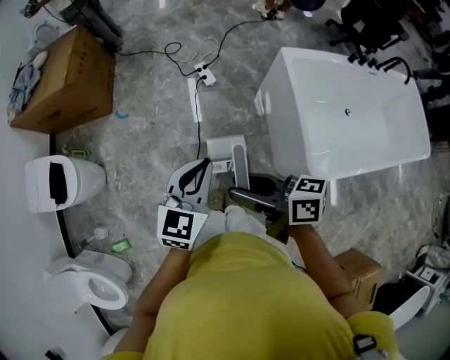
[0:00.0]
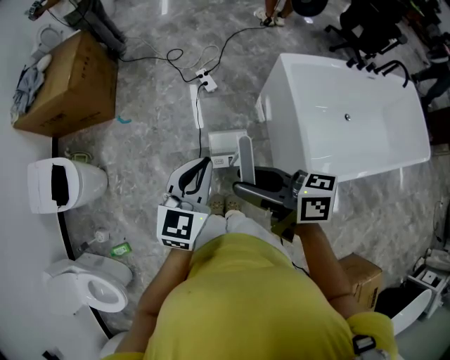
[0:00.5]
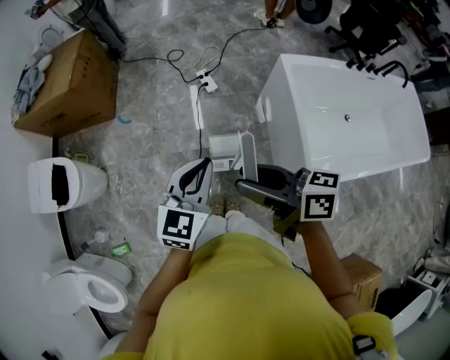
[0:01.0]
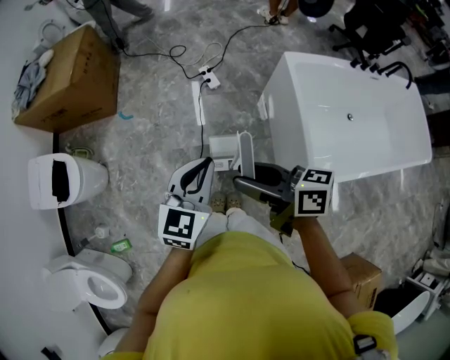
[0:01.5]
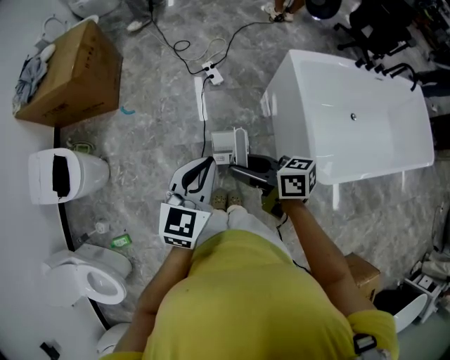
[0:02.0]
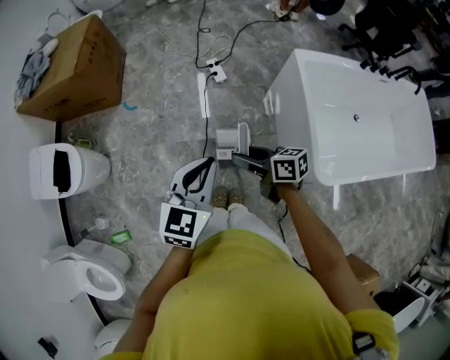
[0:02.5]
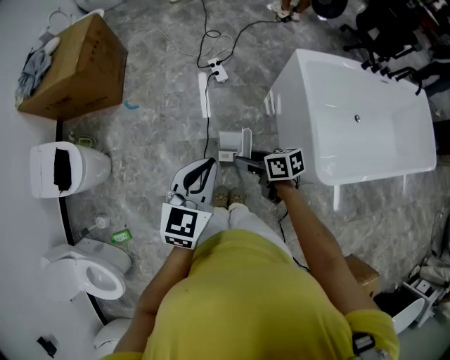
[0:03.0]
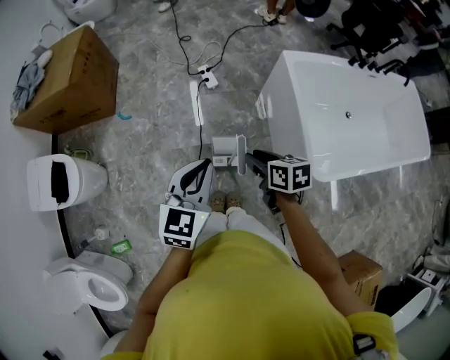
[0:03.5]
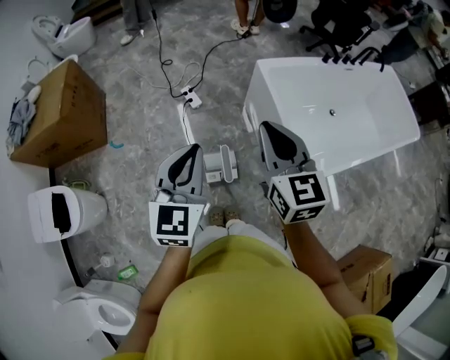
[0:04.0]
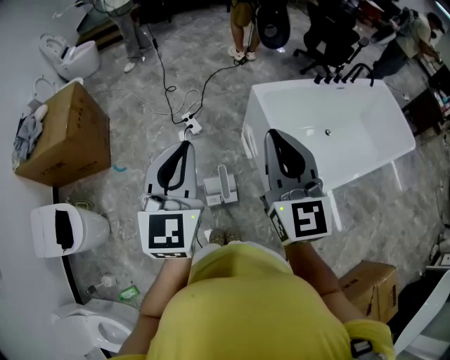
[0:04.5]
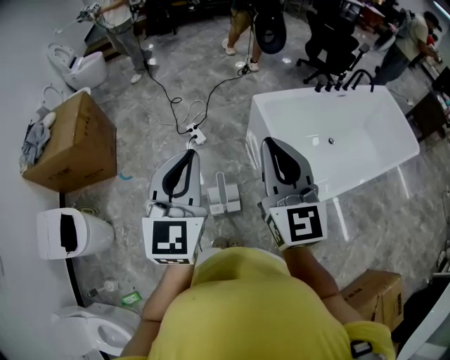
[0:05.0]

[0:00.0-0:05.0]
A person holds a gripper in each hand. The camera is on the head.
0.0 to 2.5 s: The right gripper goes roughly 15 cm downward and forward.
2.5 to 5.0 s: The left gripper heads upward, covering some 20 cm, and rotates about 20 degrees. Meanwhile the right gripper heads upward, covering roughly 35 cm, rotates about 80 degrees, and closes up.

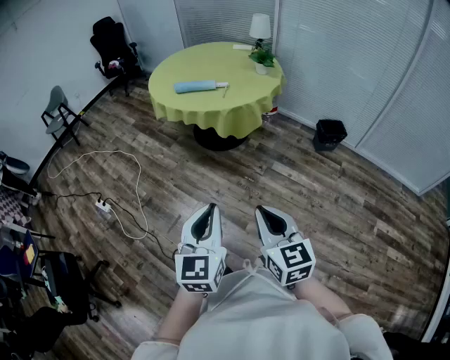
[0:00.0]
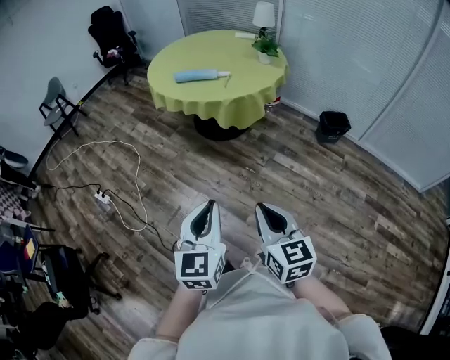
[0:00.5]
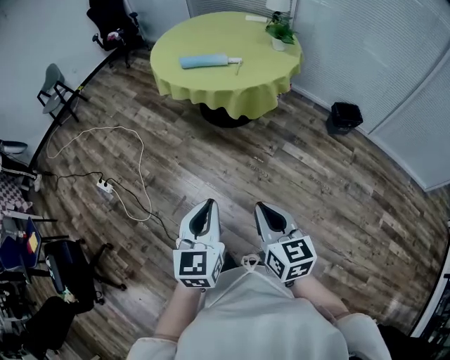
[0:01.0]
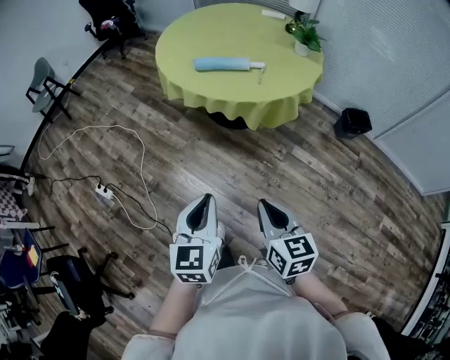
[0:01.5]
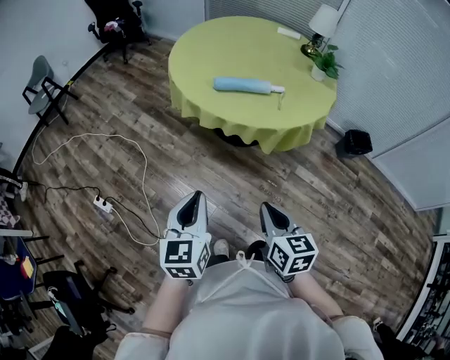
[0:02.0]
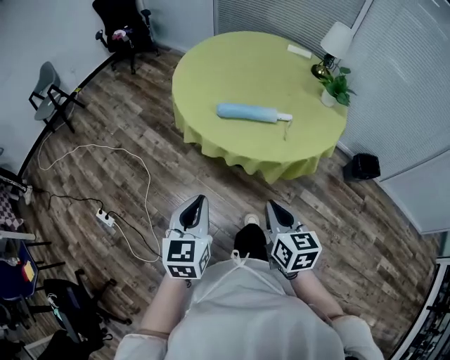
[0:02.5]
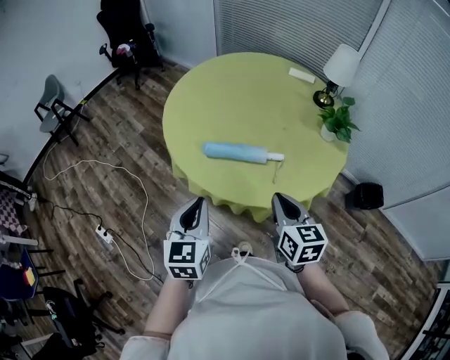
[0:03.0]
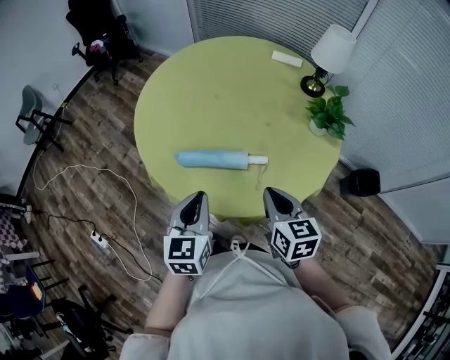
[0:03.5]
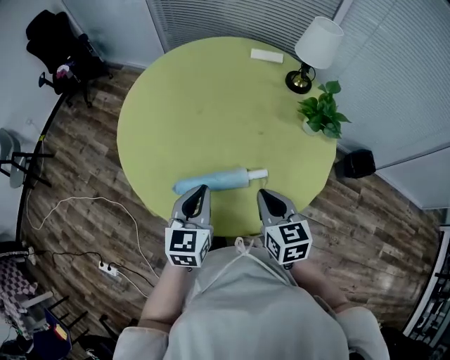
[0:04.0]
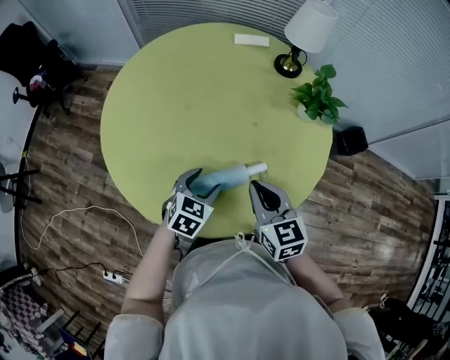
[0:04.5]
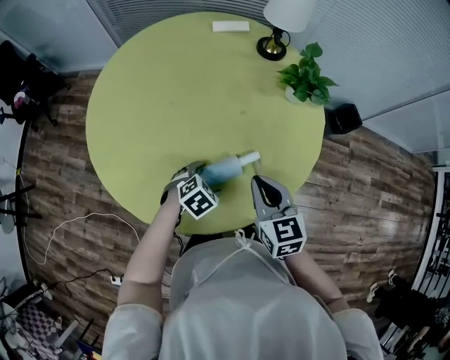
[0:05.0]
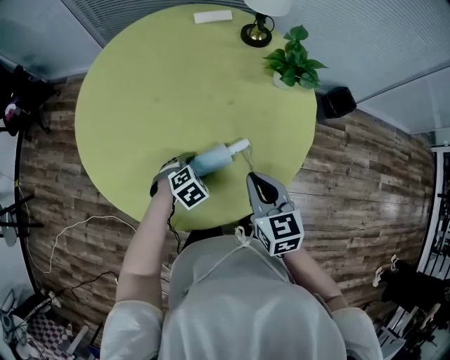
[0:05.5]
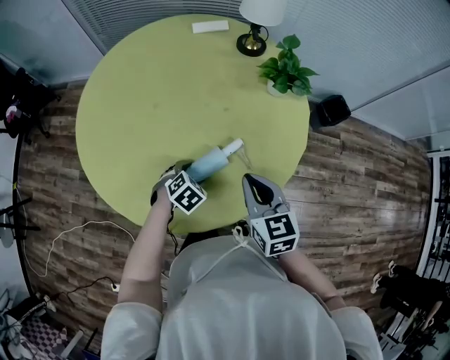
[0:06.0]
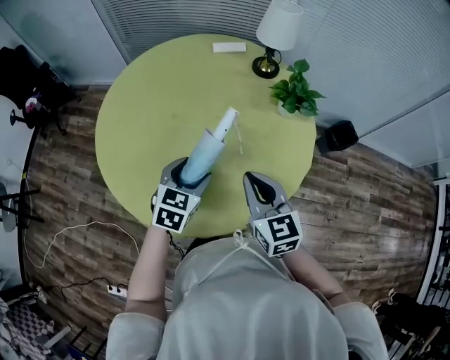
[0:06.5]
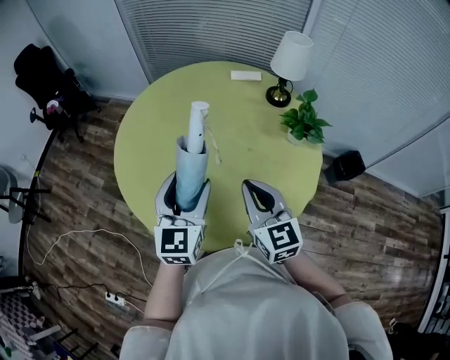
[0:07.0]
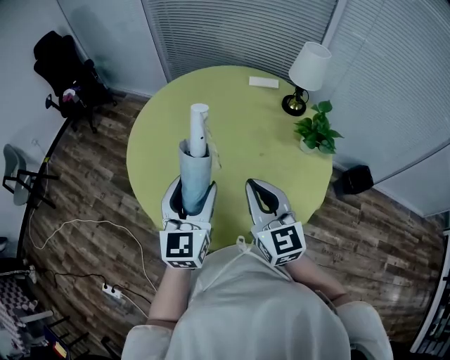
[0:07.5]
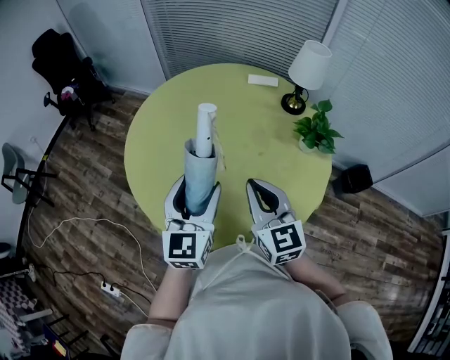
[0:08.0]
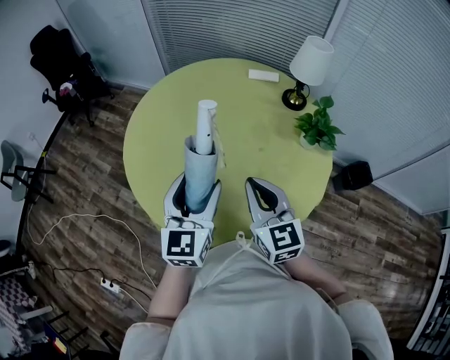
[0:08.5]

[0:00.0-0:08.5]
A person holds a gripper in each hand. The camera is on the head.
0.0 to 2.0 s: The two grippers travel together, forward and to the left, some 50 cm.
2.0 to 4.0 s: The two grippers travel together, forward, some 60 cm.
4.0 to 6.5 s: The left gripper reaches approximately 25 cm downward, then returns, swivels approximately 30 degrees, and opens its fingers.
6.5 to 8.5 s: The left gripper travels upward by roughly 15 cm, and points its fingers about 30 degrees further upward. The right gripper heads upward, covering approximately 5 cm.

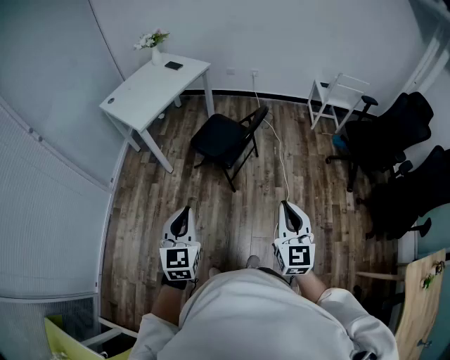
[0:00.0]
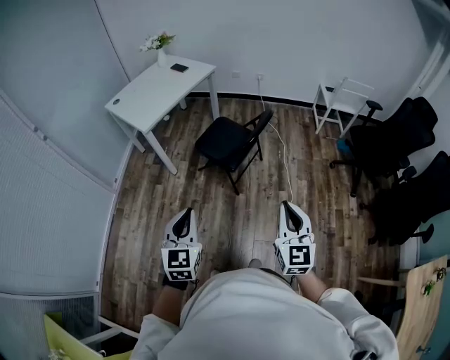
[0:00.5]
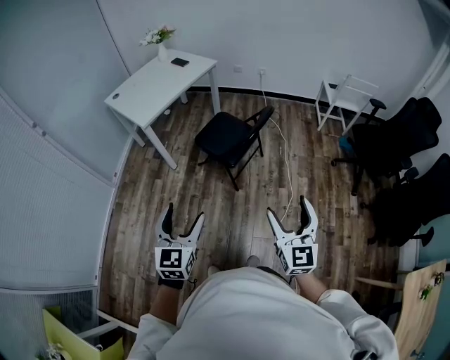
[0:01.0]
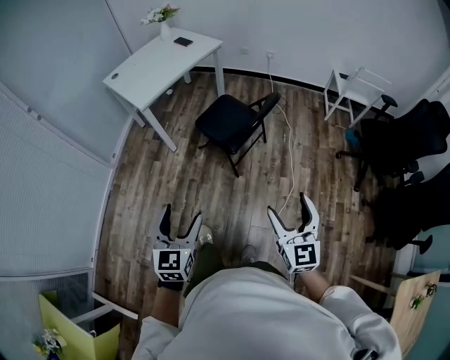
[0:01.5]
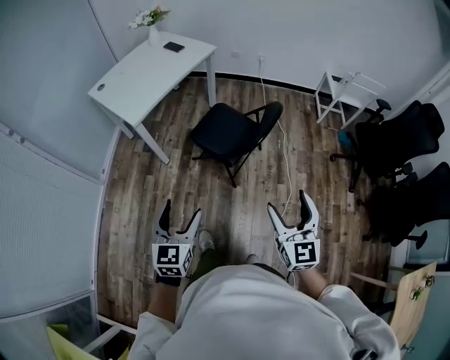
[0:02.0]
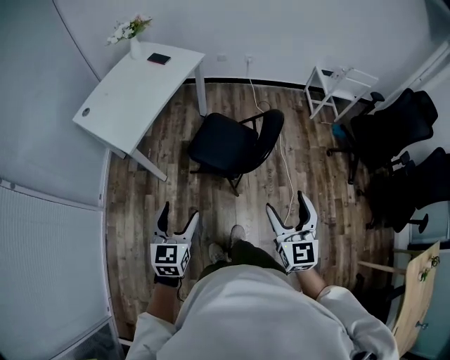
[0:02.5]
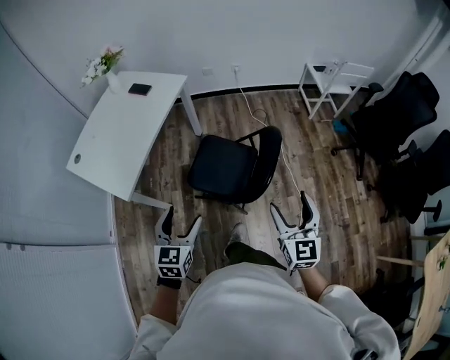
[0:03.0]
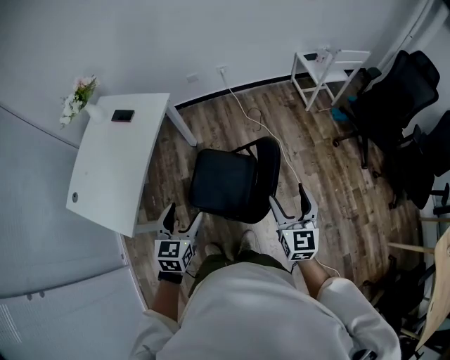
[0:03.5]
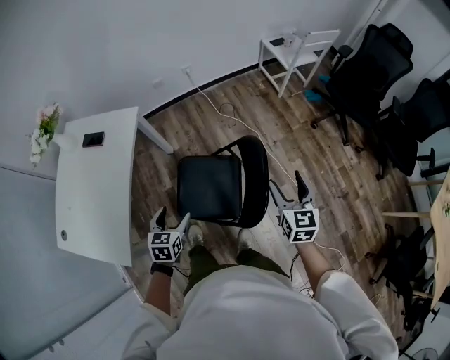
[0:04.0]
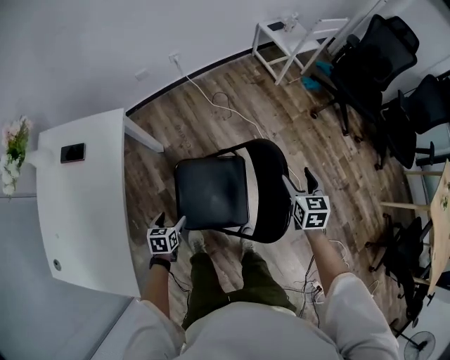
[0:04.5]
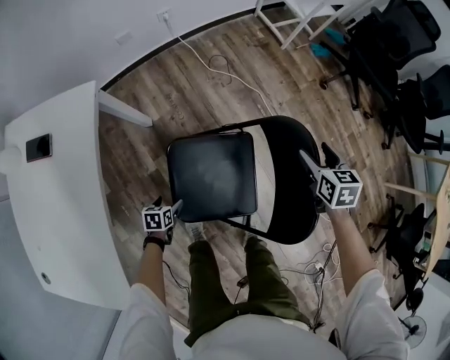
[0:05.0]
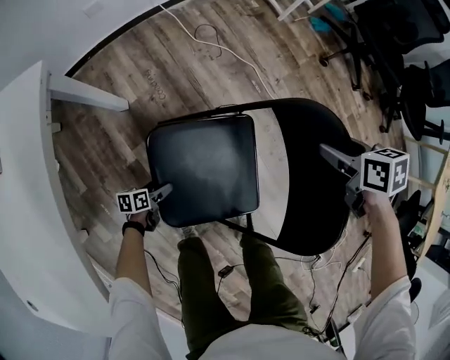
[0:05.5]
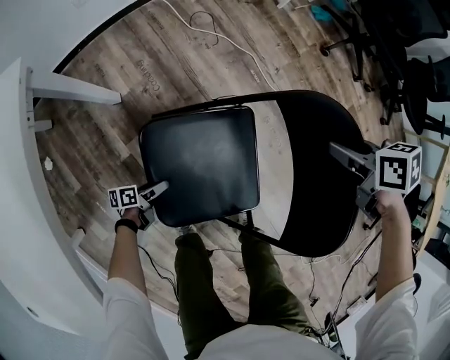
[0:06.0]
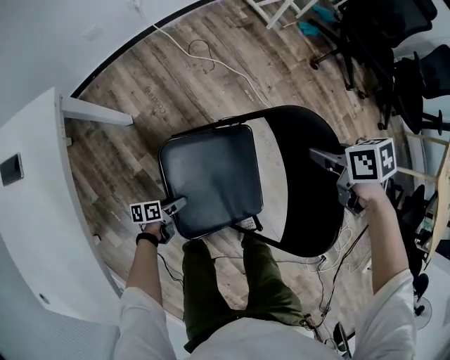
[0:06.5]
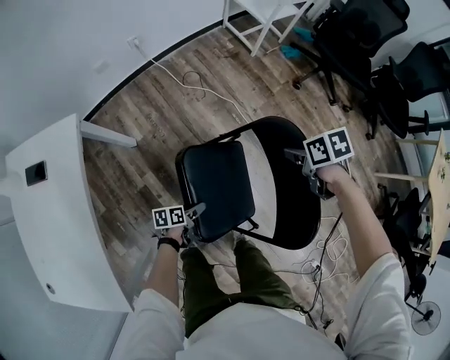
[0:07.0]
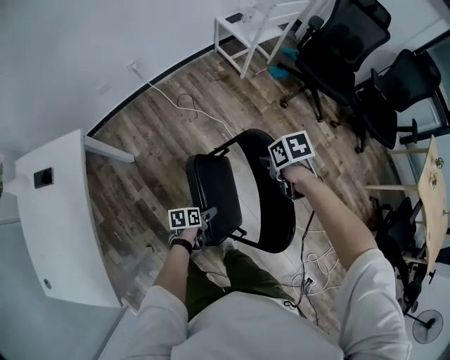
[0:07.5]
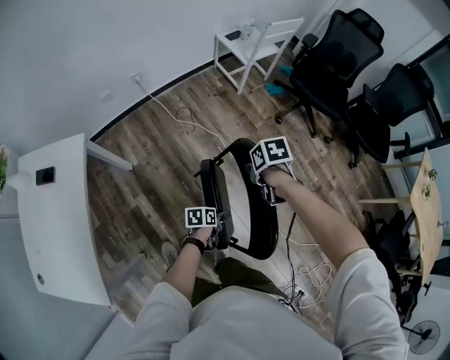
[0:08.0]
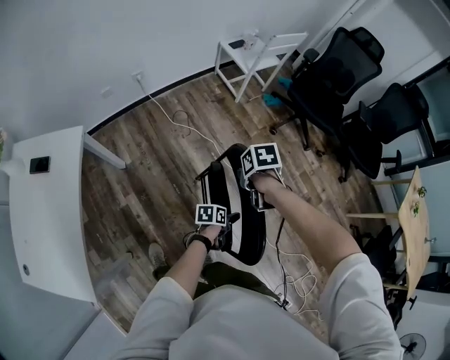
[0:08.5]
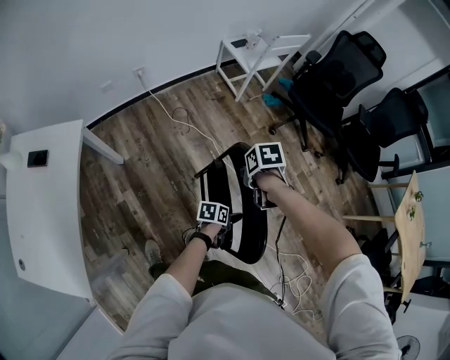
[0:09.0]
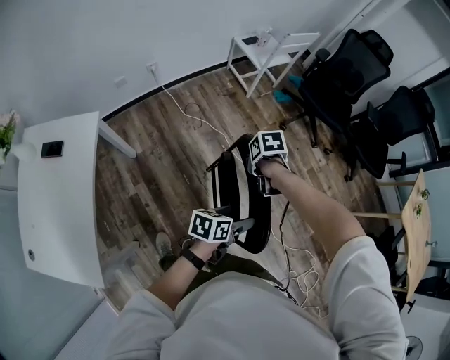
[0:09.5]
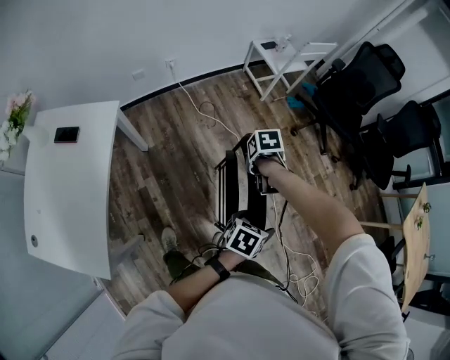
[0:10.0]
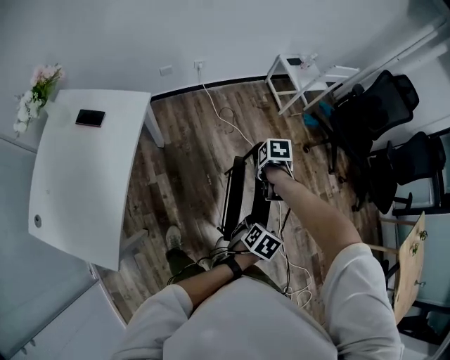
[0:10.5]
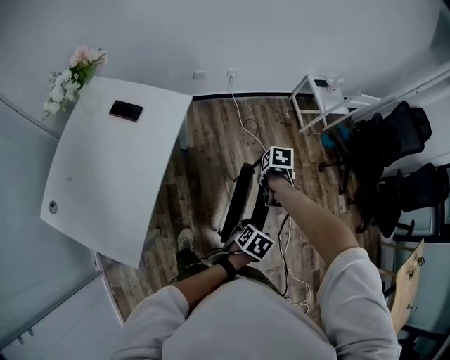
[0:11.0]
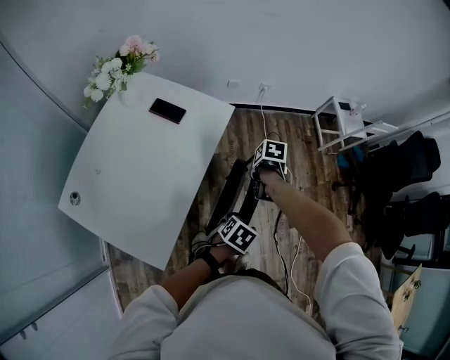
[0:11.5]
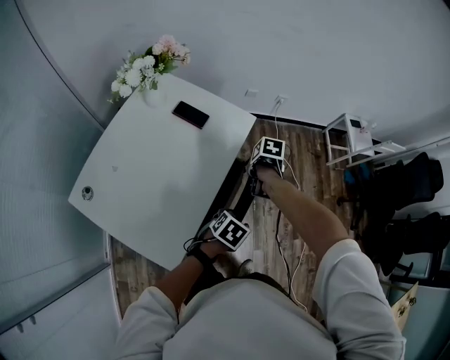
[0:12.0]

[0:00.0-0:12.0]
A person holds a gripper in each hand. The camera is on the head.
0.0 to 2.0 s: The right gripper travels forward by some 15 cm, and opens up. The left gripper goes about 15 cm forward, to the left and downward, and opens its fingers.
2.0 to 4.0 s: The two grippers travel together, roughly 50 cm. The right gripper rotates about 40 degrees, while the left gripper rotates approximately 40 degrees.
4.0 to 6.0 s: The left gripper moves downward, approximately 60 cm, and rotates some 70 degrees, while the right gripper travels downward and forward by roughly 35 cm, points its fingers about 40 degrees further downward, and closes.
6.0 to 8.0 s: The left gripper shifts by approximately 50 cm, and turns by approximately 20 degrees. The right gripper is displaced upward by some 15 cm.
8.0 to 10.0 s: The left gripper moves upward, approximately 20 cm, and rotates some 30 degrees. Meanwhile the right gripper changes place by roughly 10 cm.
10.0 to 12.0 s: Both grippers are carried some 50 cm. The left gripper turns by approximately 20 degrees, and closes up.

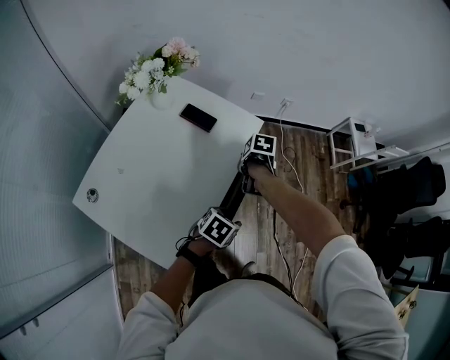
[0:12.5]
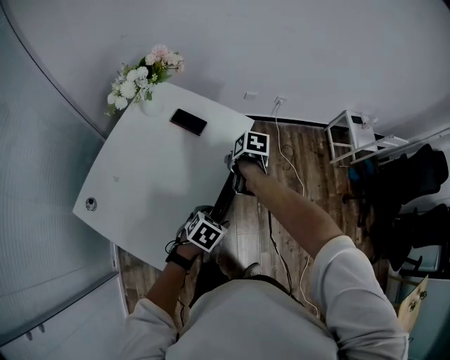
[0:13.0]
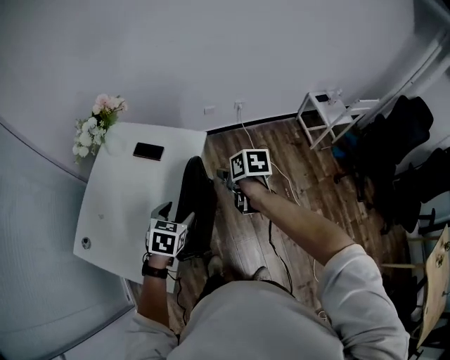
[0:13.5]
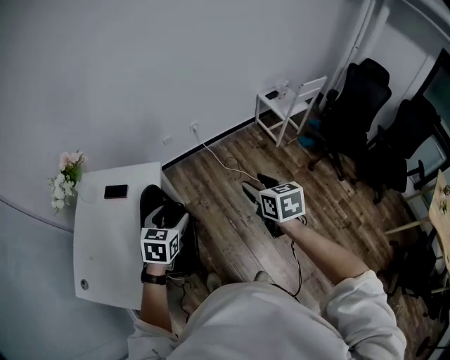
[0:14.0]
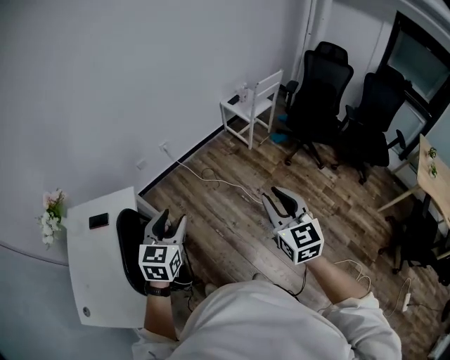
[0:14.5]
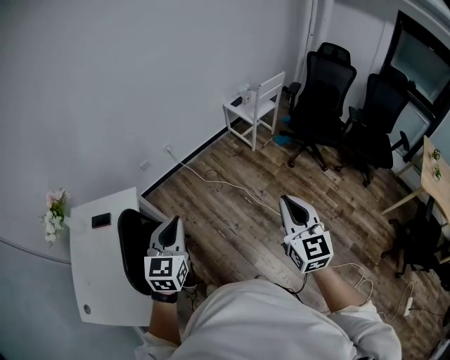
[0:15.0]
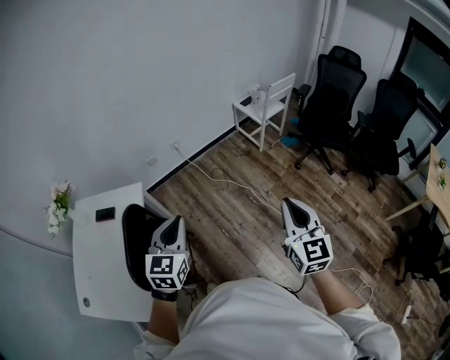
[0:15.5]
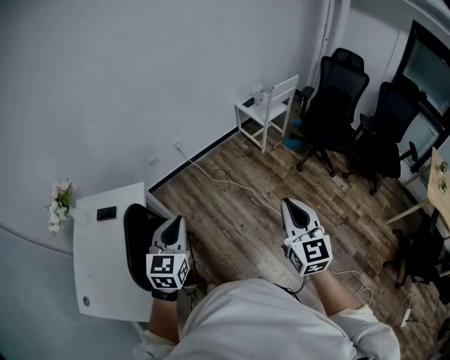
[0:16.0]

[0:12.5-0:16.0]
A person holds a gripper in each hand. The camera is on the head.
12.5 to 14.5 s: The left gripper ends up some 40 cm from where it was, and points its fingers about 30 degrees further upward, while the right gripper changes place by about 70 cm, and tips its fingers upward by about 70 degrees.
14.5 to 16.0 s: The left gripper closes up.
